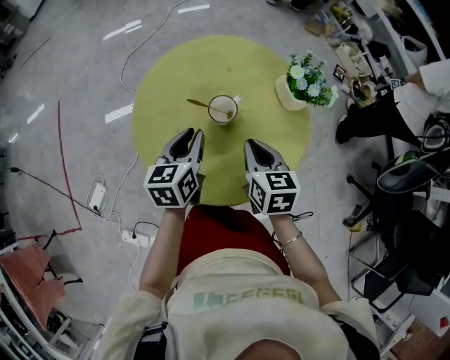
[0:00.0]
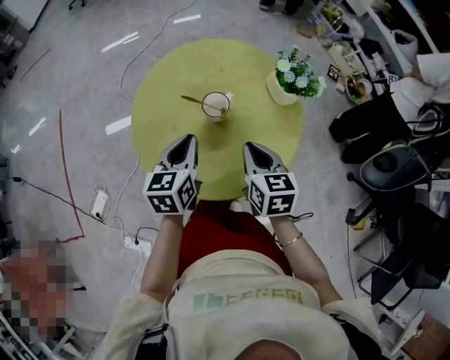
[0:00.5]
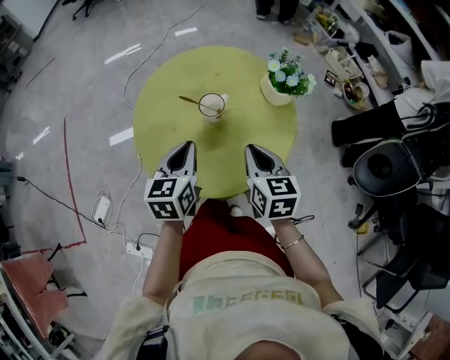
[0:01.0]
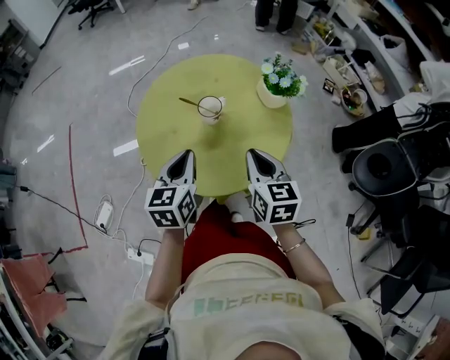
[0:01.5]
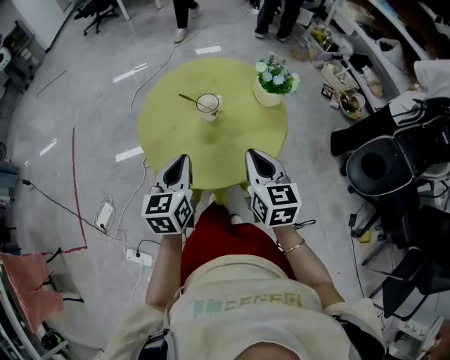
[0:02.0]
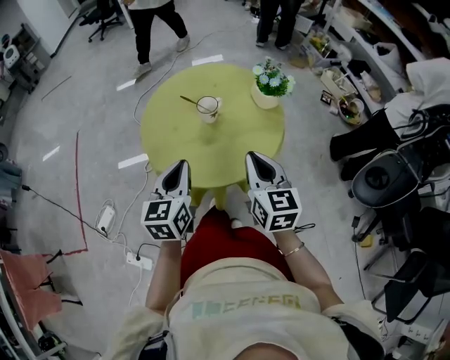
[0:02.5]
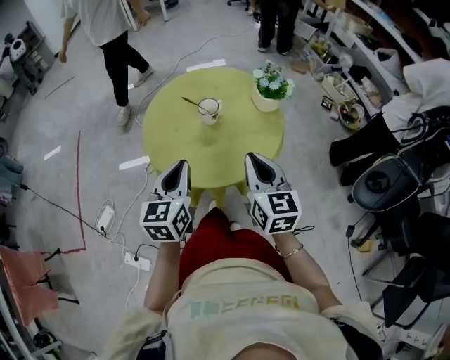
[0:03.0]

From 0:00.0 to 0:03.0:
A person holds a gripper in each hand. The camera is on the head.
From 0:00.0 to 0:01.5: The grippers both shift backward and upward by approximately 15 cm.
From 0:01.5 to 0:03.0: The grippers both shift backward and upward by some 10 cm.

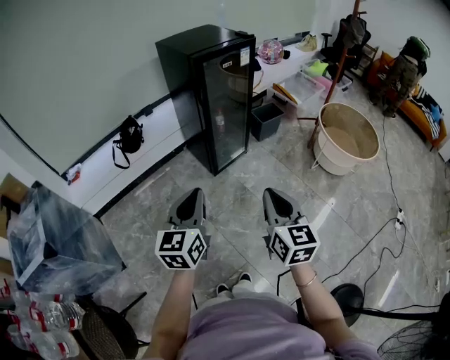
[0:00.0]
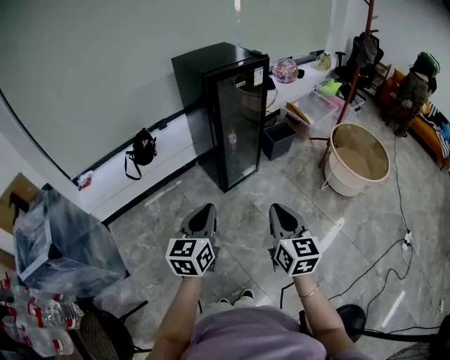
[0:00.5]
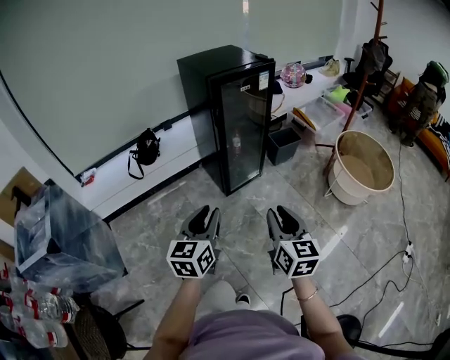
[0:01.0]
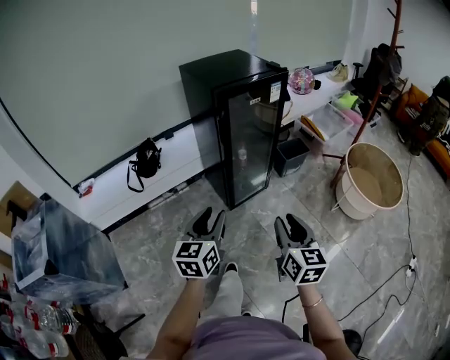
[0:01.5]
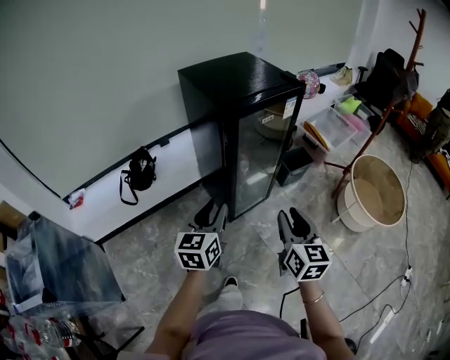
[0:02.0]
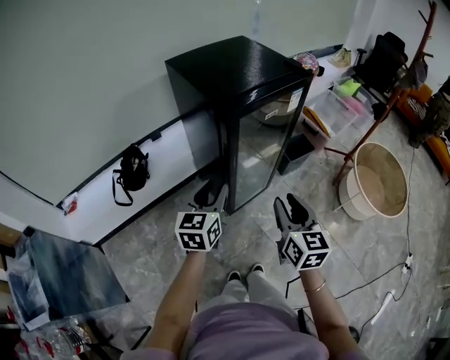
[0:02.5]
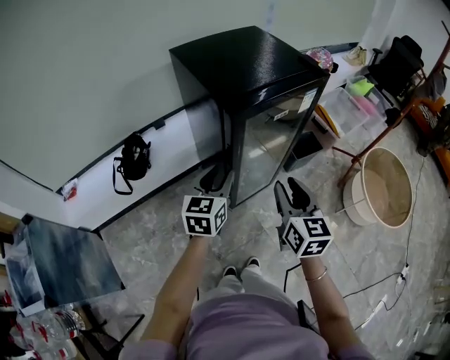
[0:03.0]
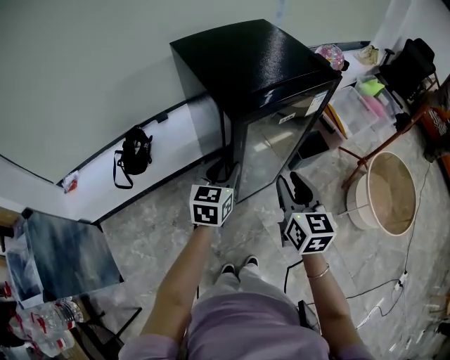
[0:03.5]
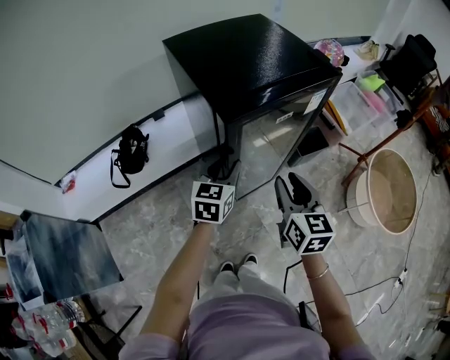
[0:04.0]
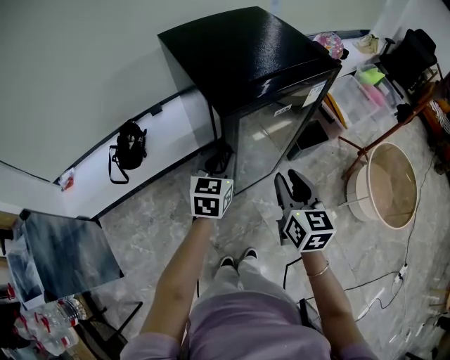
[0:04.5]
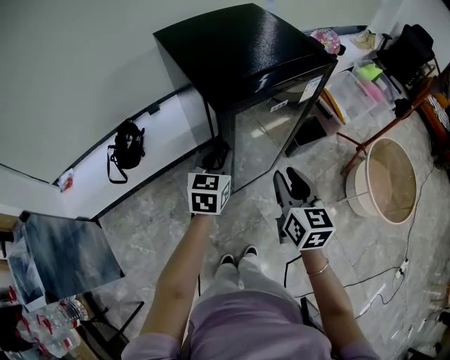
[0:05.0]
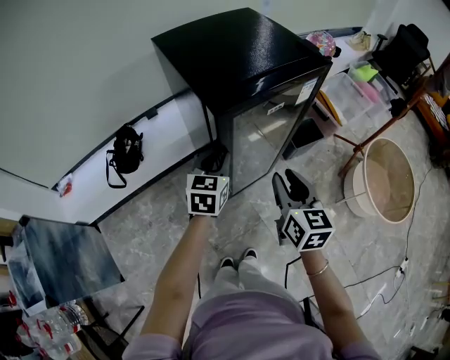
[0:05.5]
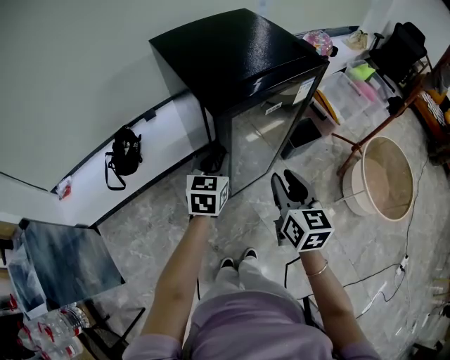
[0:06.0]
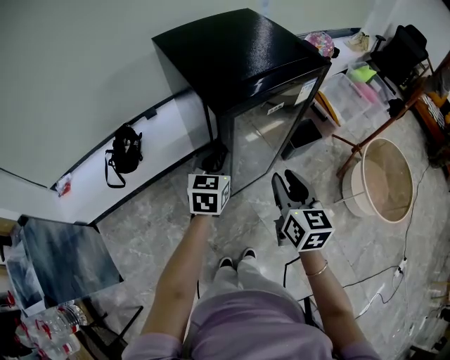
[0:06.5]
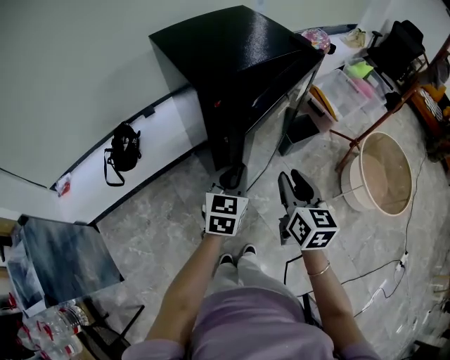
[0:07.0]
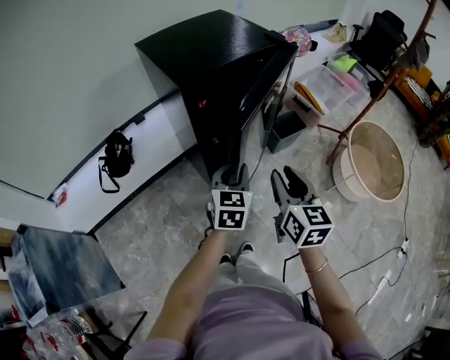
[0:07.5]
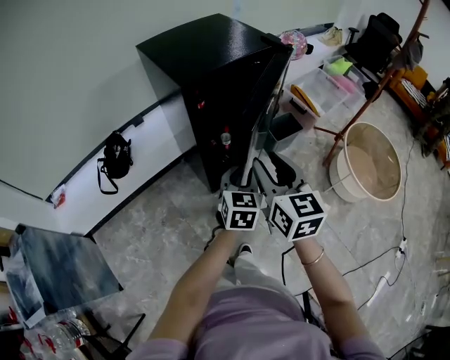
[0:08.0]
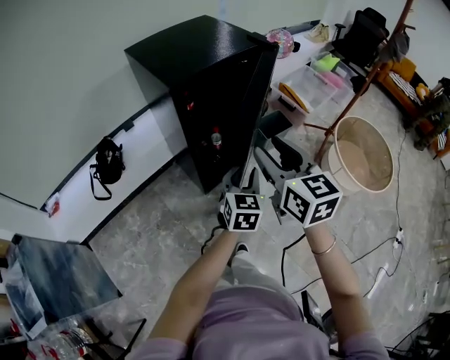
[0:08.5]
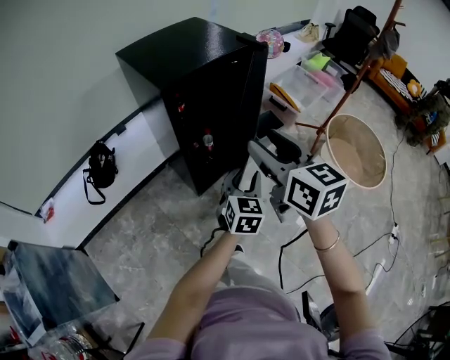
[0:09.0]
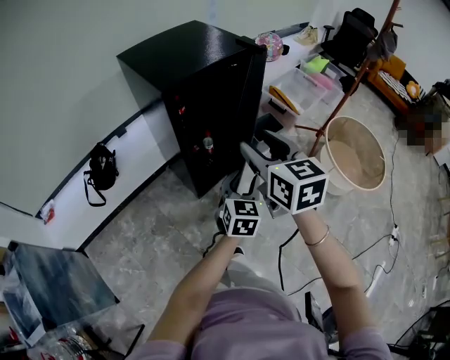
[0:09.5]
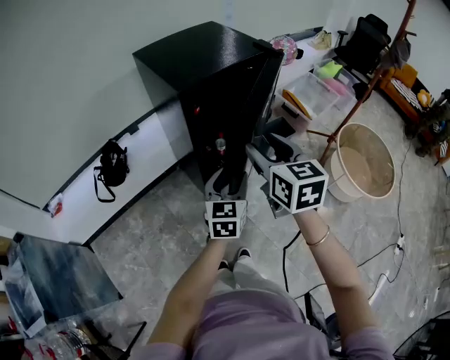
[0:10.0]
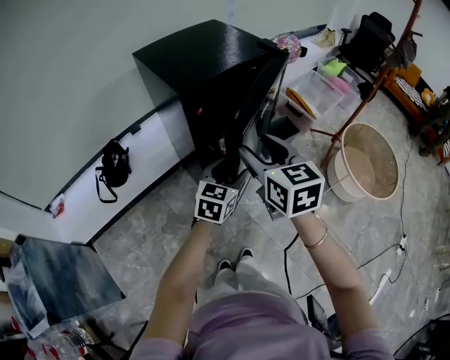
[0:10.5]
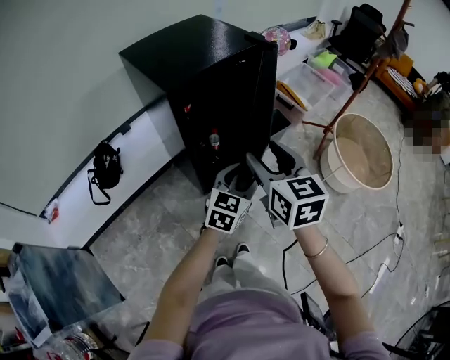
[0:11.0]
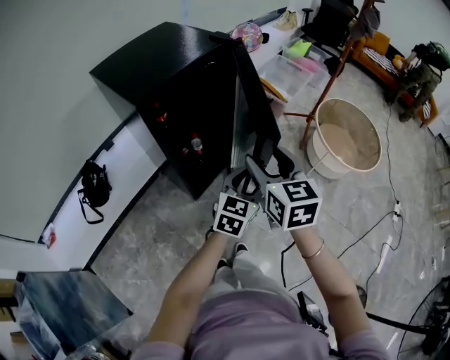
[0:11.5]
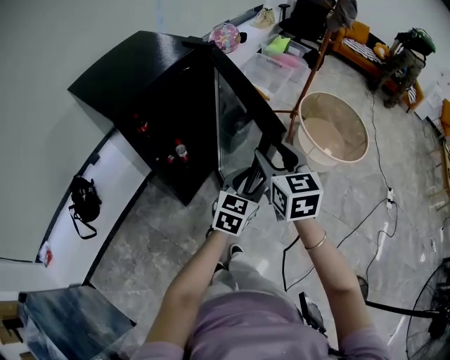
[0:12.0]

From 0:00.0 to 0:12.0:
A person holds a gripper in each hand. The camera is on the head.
From 0:00.0 to 0:02.0: The two grippers go approximately 30 cm forward. The right gripper opens its fingers, while the left gripper opens.
From 0:02.0 to 0:04.0: Both grippers travel together forward, some 20 cm.
From 0:04.0 to 0:06.0: The grippers move only a little.
From 0:06.0 to 0:08.0: The left gripper moves to the right and backward, some 15 cm. Meanwhile the right gripper goes roughly 10 cm upward and backward.
From 0:08.0 to 0:10.0: The left gripper opens its fingers.
From 0:10.0 to 0:12.0: The left gripper ends up about 20 cm from where it was, and swivels some 40 degrees. The right gripper moves some 15 cm, and changes its angle by about 20 degrees.

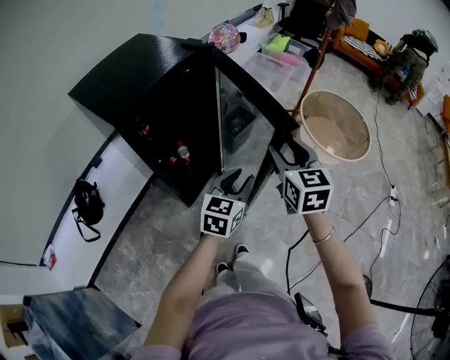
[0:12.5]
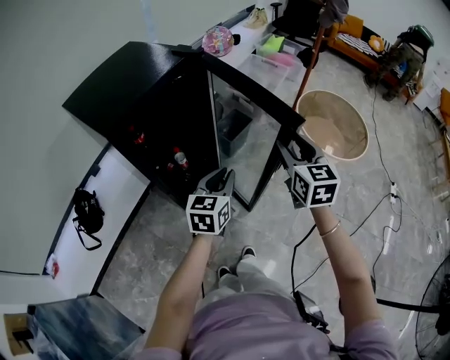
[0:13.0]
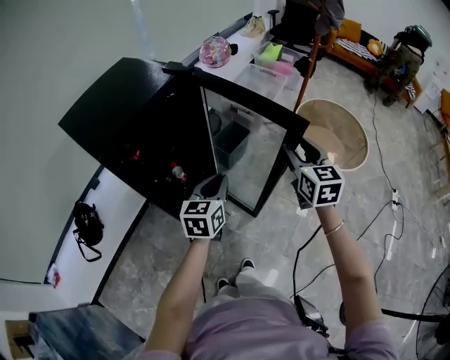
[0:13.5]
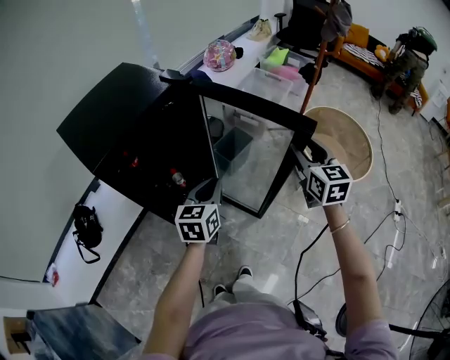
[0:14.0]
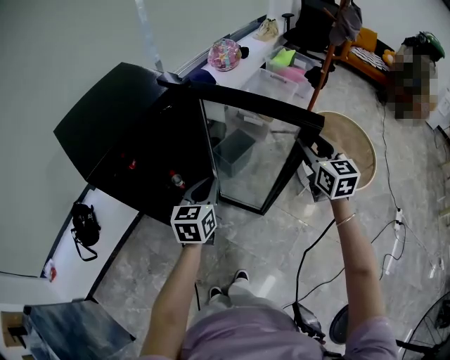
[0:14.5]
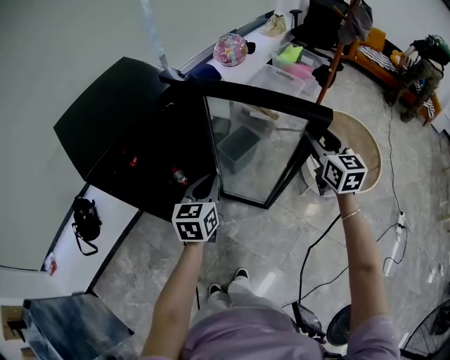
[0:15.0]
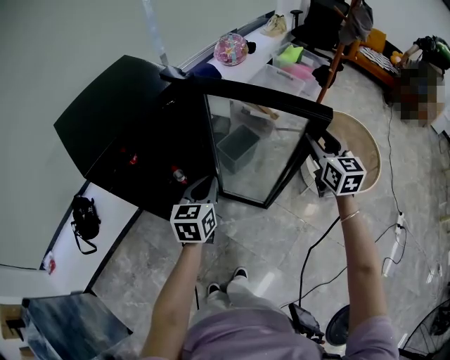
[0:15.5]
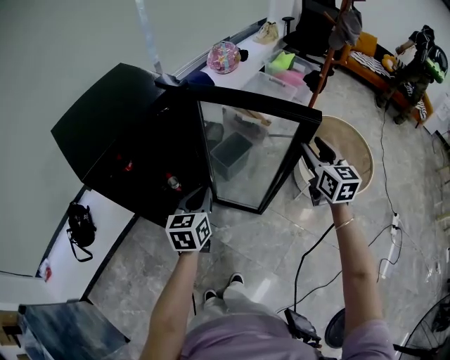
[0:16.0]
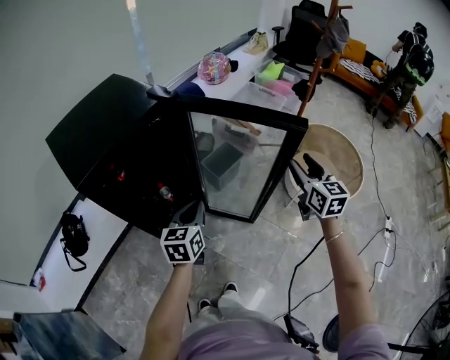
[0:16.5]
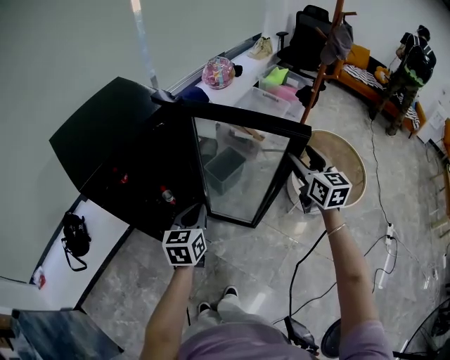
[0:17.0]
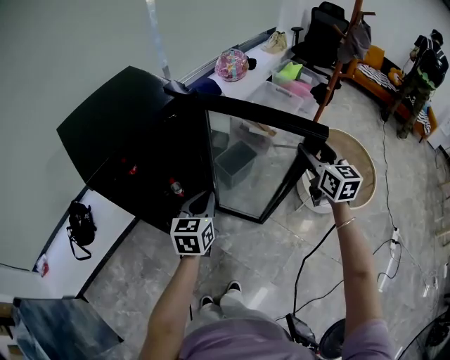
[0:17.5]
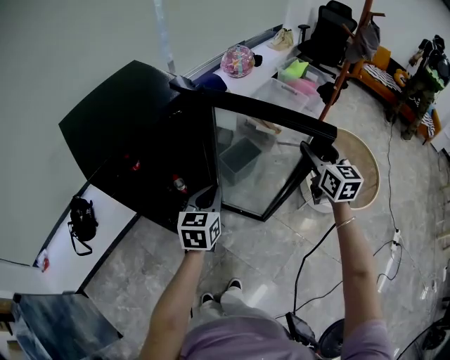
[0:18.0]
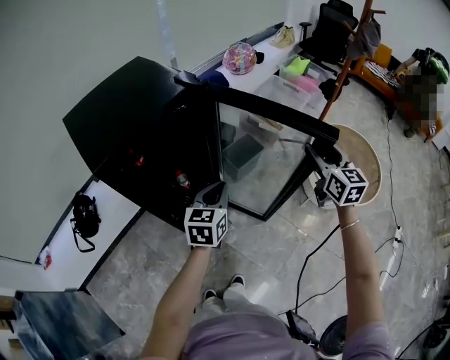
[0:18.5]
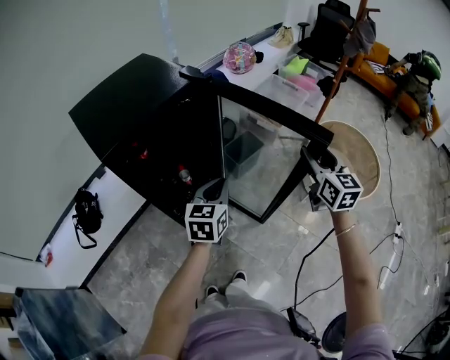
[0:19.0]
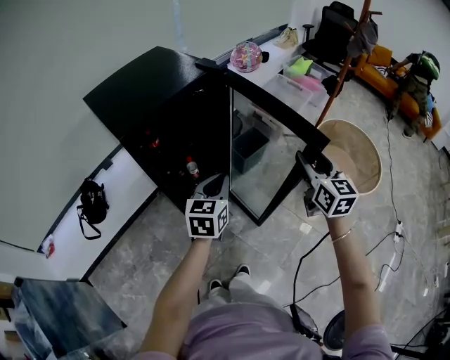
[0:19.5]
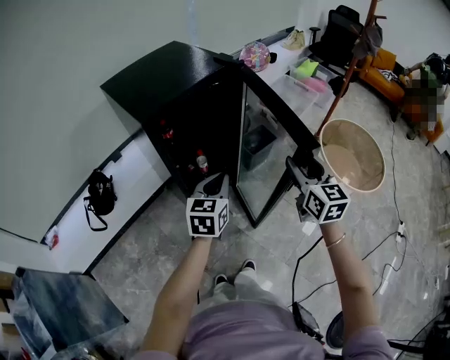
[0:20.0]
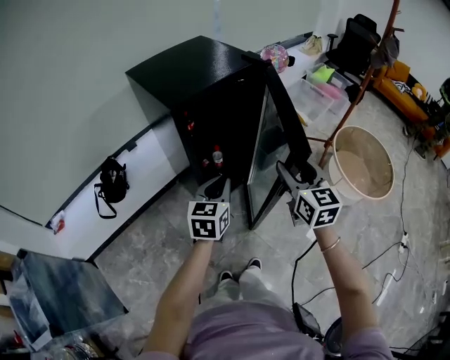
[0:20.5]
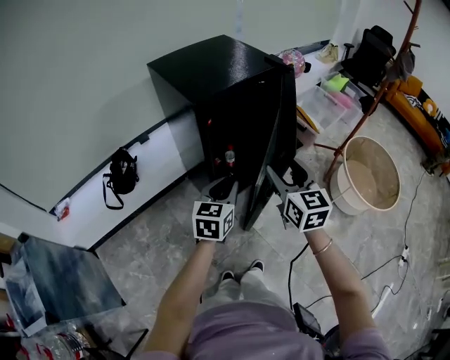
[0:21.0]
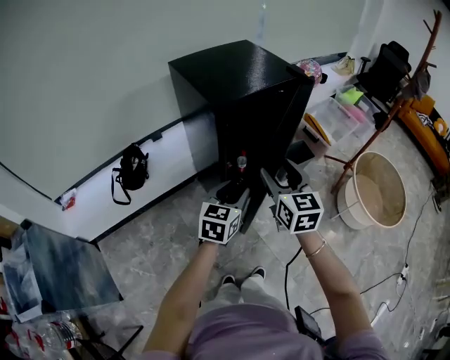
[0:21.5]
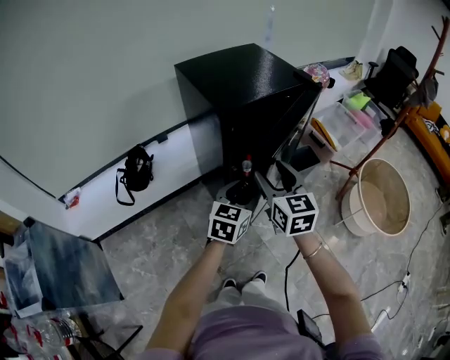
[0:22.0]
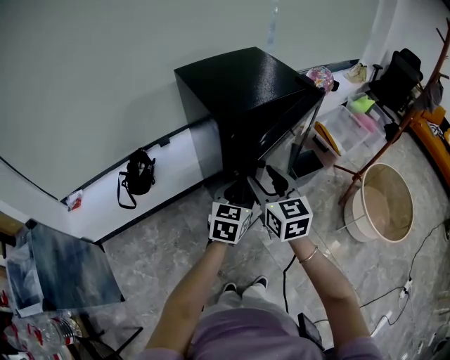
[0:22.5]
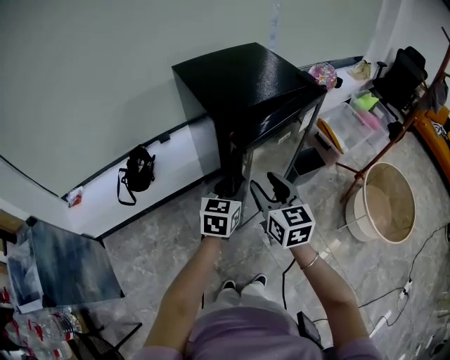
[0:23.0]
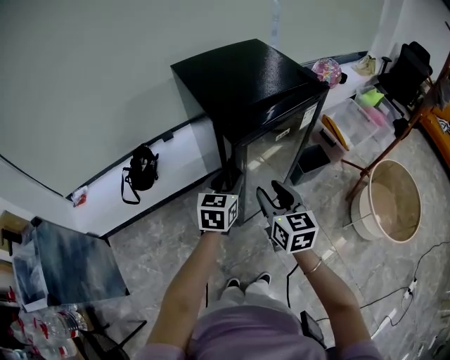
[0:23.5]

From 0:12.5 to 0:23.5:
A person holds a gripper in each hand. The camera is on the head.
From 0:12.5 to 0:14.5: The right gripper shifts some 25 cm forward and to the right, while the left gripper travels forward by about 15 cm, and closes.
From 0:14.5 to 0:16.0: The grippers stay close to where they were, moving slightly.
From 0:16.0 to 0:18.0: The right gripper shifts by some 5 cm.
From 0:18.0 to 0:20.0: The left gripper moves backward and to the left, roughly 15 cm. The right gripper travels backward and to the left by some 25 cm.
From 0:20.0 to 0:21.5: The left gripper travels to the left by about 10 cm, and opens its fingers, while the right gripper moves to the left, some 25 cm.
From 0:21.5 to 0:23.5: The right gripper heads downward, covering some 5 cm. The left gripper travels forward by about 10 cm.

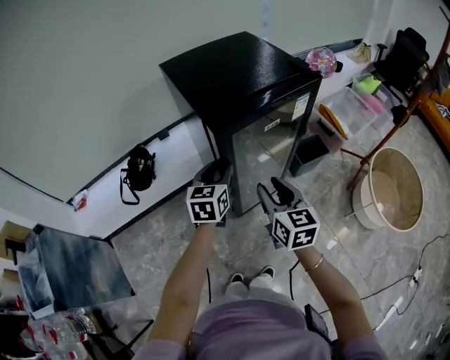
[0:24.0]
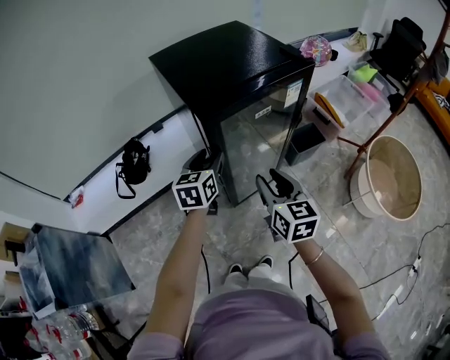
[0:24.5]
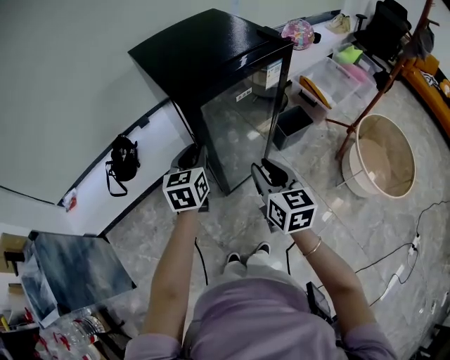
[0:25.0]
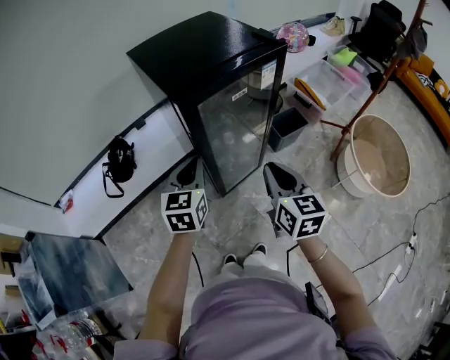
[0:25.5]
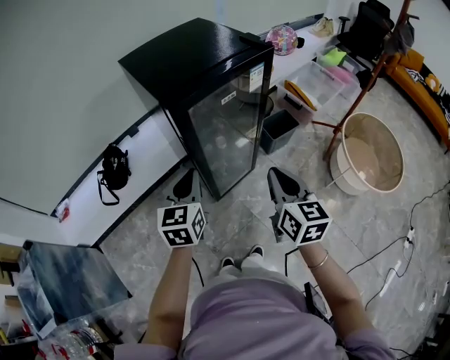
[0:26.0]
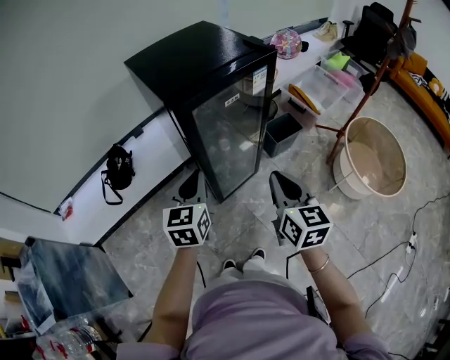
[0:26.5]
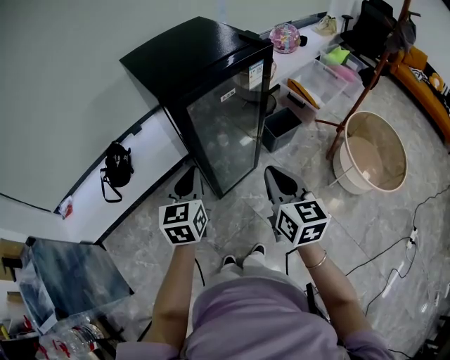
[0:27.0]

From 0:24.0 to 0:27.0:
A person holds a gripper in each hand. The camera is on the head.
From 0:24.0 to 0:25.5: The left gripper moves backward, about 10 cm, and closes, while the right gripper shifts some 10 cm to the right and backward, and closes.
From 0:25.5 to 0:27.0: The grippers stay close to where they were, moving slightly.
